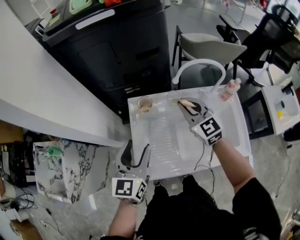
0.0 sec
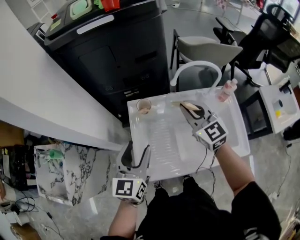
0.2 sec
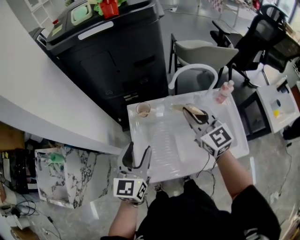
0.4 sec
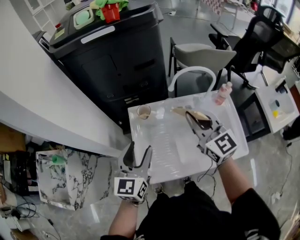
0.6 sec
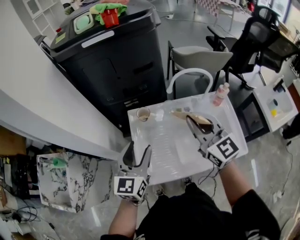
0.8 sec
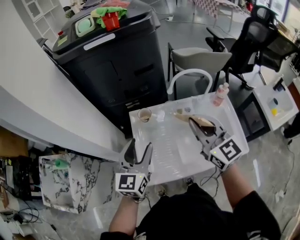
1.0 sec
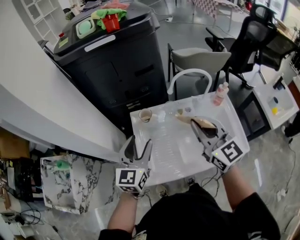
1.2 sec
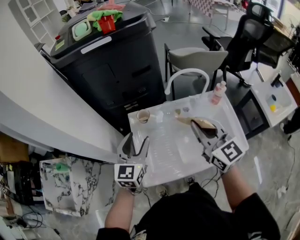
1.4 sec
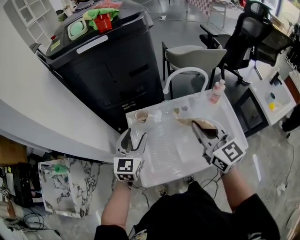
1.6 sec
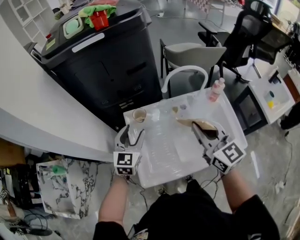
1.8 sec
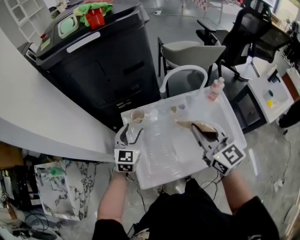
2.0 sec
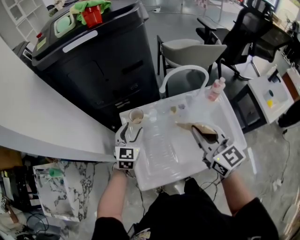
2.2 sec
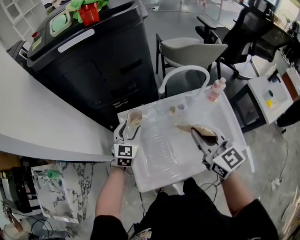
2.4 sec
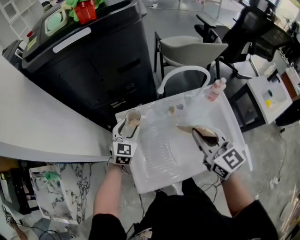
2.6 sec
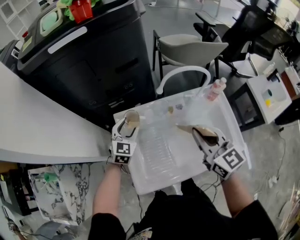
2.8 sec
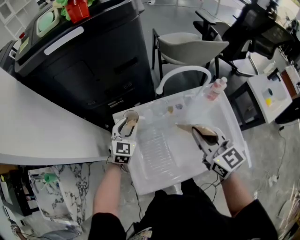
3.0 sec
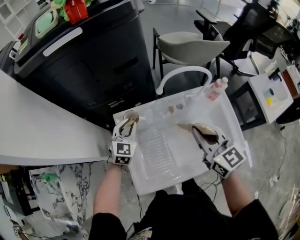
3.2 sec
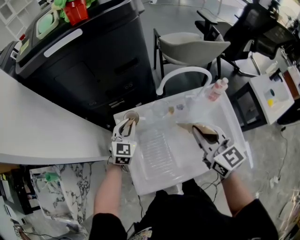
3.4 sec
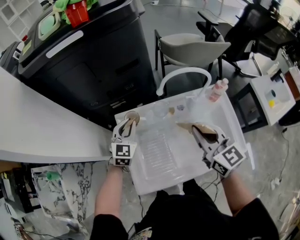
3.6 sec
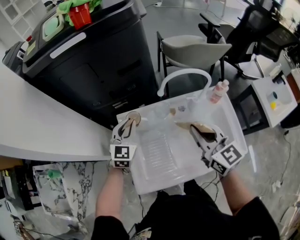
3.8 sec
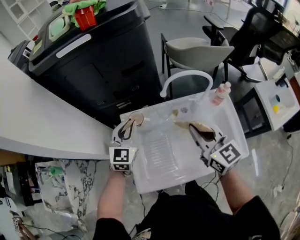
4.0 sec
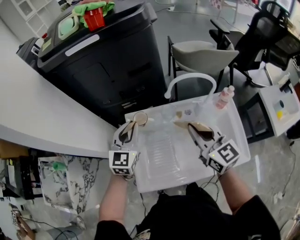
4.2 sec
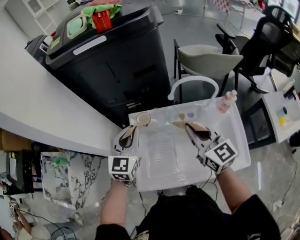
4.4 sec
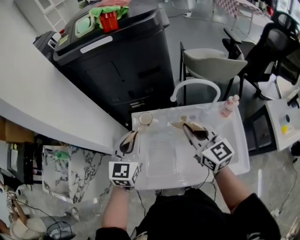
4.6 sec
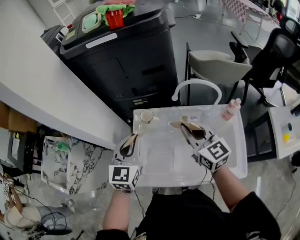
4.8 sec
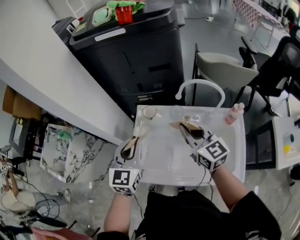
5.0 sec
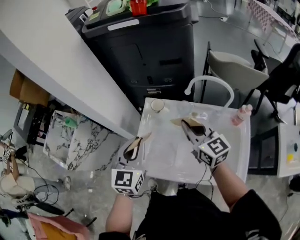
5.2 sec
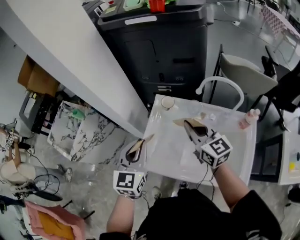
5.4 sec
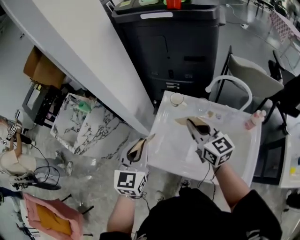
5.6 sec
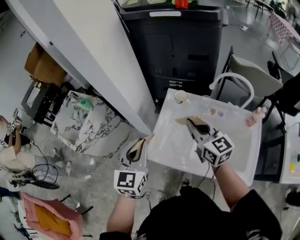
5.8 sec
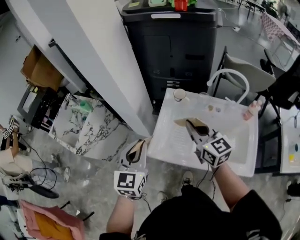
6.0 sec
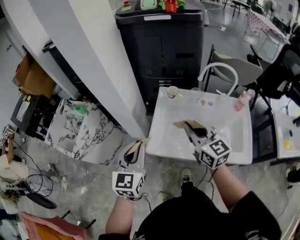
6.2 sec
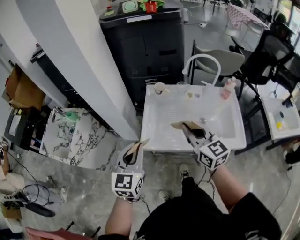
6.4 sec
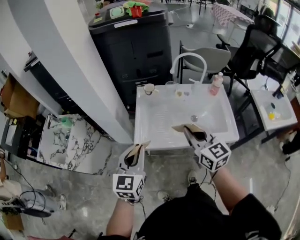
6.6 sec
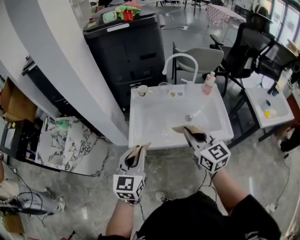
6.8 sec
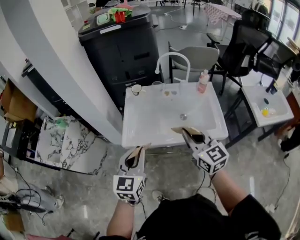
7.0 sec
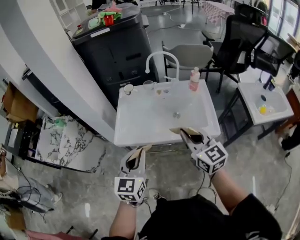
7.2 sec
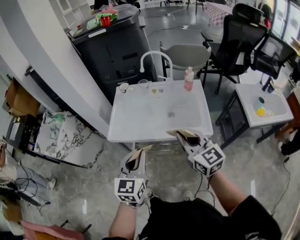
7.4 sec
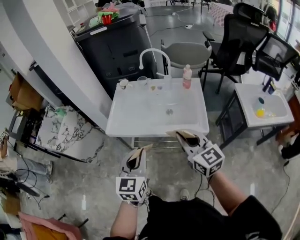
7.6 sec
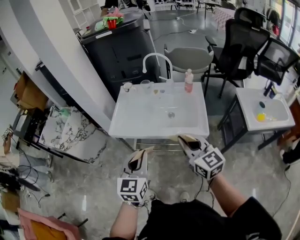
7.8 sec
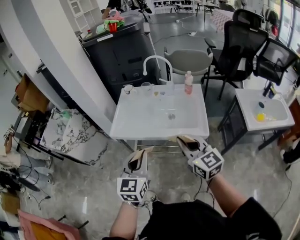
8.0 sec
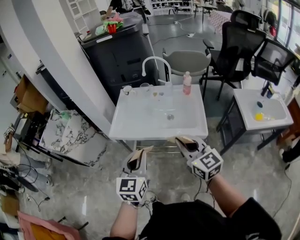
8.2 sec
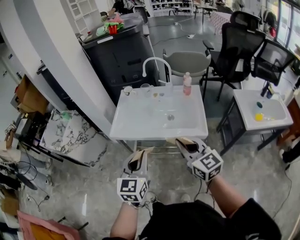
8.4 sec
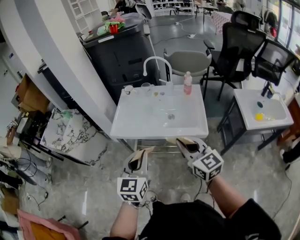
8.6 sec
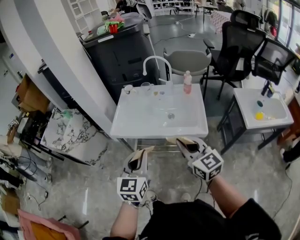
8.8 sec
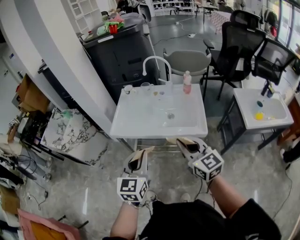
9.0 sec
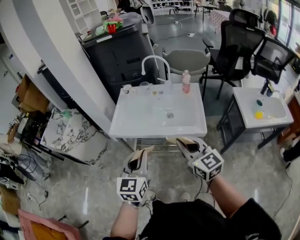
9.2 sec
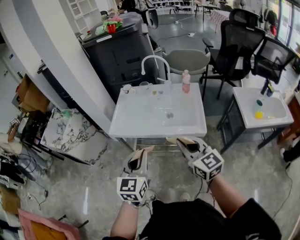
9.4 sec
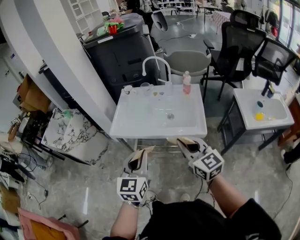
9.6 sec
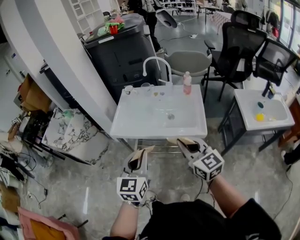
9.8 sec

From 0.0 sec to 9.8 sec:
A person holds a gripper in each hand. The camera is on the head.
From 0.0 sec to 1.4 sec: The right gripper goes roughly 20 cm backward and upward.
From 1.4 sec to 2.8 sec: The left gripper shifts roughly 20 cm downward and forward, and changes its angle by about 20 degrees; the right gripper goes some 5 cm downward.
From 2.8 sec to 4.2 sec: The left gripper moves upward, about 15 cm, and closes up.
From 4.2 sec to 5.6 sec: The right gripper changes place by some 10 cm, and swivels roughly 30 degrees, while the left gripper shifts by roughly 25 cm, and turns by roughly 30 degrees.
From 5.6 sec to 7.0 sec: Both grippers move backward, approximately 25 cm. The right gripper swivels some 20 degrees. The left gripper rotates some 20 degrees.
From 7.0 sec to 8.4 sec: The right gripper is displaced backward and to the right by about 20 cm. Meanwhile the left gripper heads to the right and backward, covering roughly 20 cm.
From 8.4 sec to 9.8 sec: The grippers make only small movements.

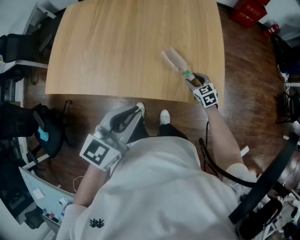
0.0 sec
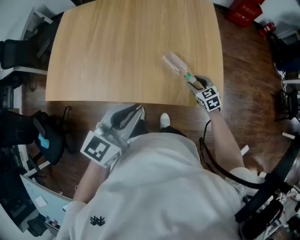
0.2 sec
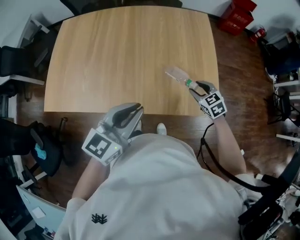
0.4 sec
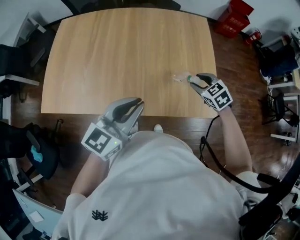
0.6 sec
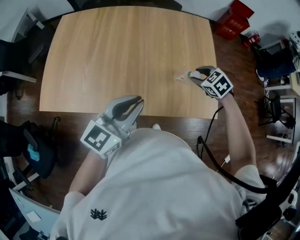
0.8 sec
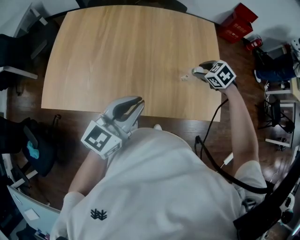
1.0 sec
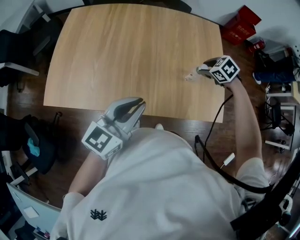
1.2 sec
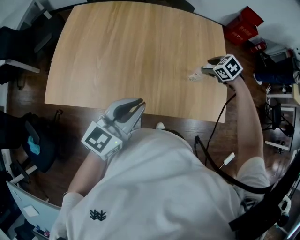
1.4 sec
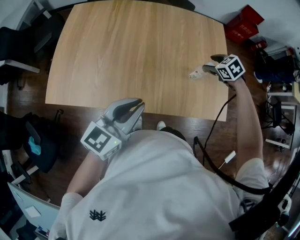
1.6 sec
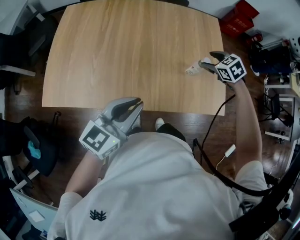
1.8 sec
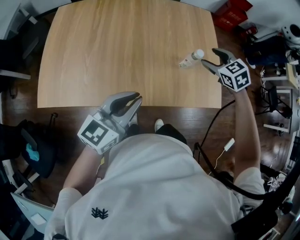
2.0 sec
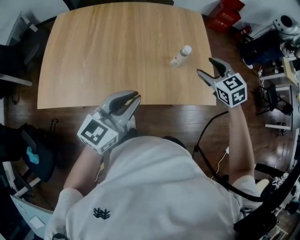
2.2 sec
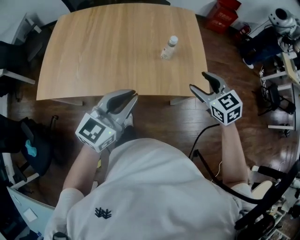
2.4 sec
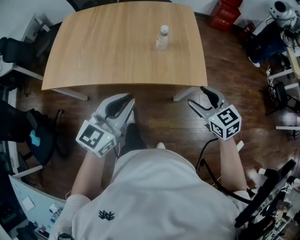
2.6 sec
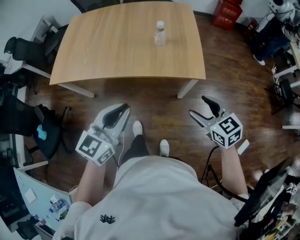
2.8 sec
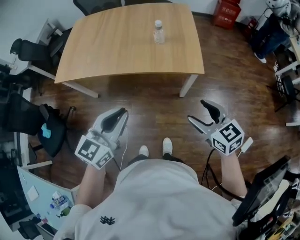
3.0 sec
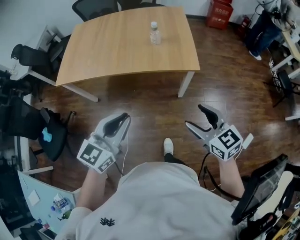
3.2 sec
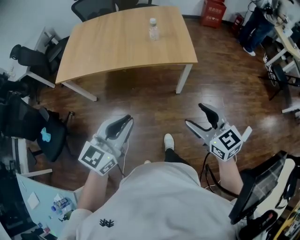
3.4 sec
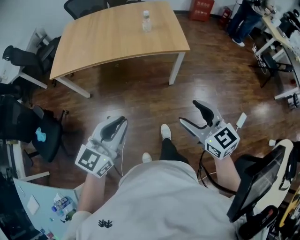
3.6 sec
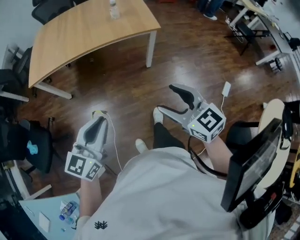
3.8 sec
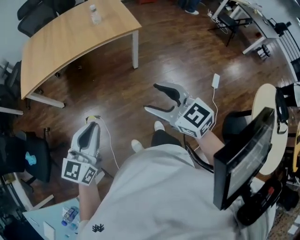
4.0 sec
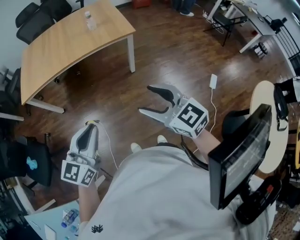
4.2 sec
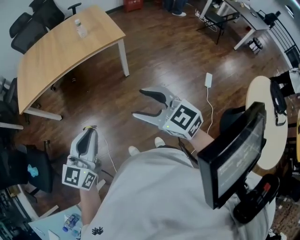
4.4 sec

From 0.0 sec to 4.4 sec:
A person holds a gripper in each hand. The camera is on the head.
From 0.0 sec to 1.4 sec: The right gripper heads upward and forward, covering some 20 cm, and swivels about 30 degrees. The left gripper moves to the left and forward, roughly 10 cm.
From 1.4 sec to 3.0 sec: The right gripper shifts approximately 40 cm backward, and points its fingers approximately 40 degrees further upward. Meanwhile the left gripper travels backward and to the right by some 25 cm.
From 3.0 sec to 4.4 sec: The two grippers go about 25 cm backward.

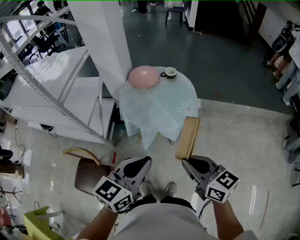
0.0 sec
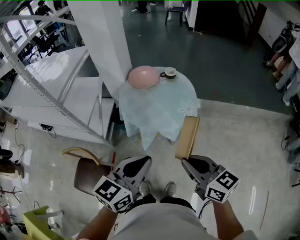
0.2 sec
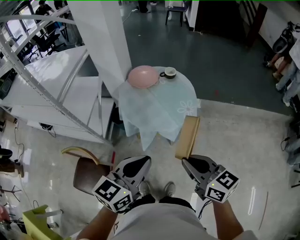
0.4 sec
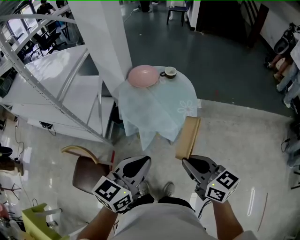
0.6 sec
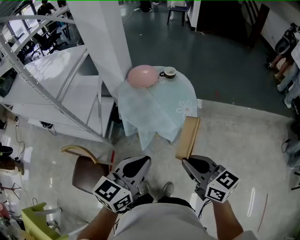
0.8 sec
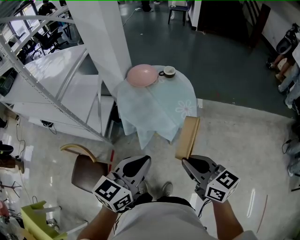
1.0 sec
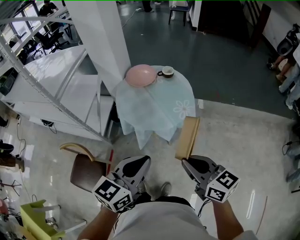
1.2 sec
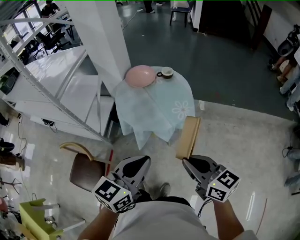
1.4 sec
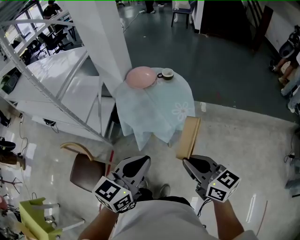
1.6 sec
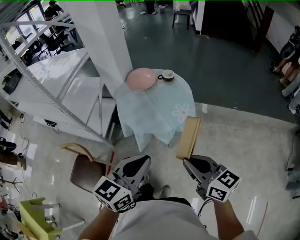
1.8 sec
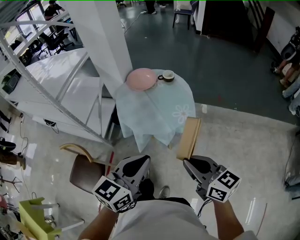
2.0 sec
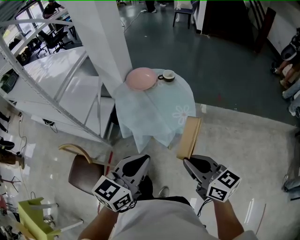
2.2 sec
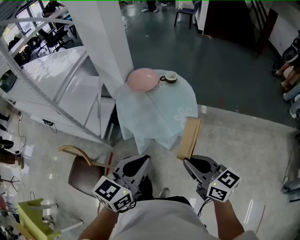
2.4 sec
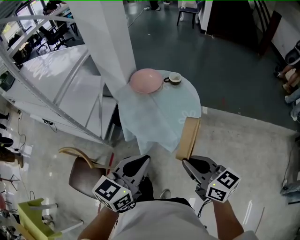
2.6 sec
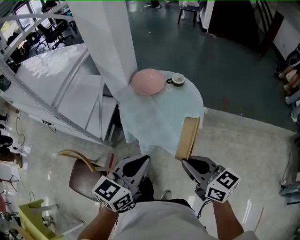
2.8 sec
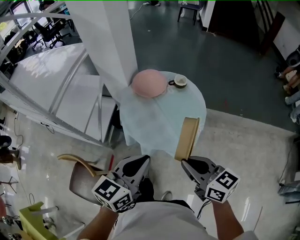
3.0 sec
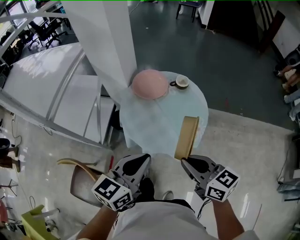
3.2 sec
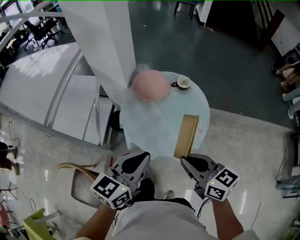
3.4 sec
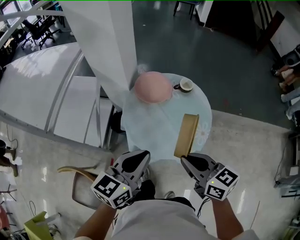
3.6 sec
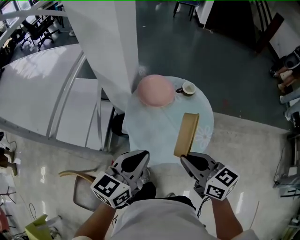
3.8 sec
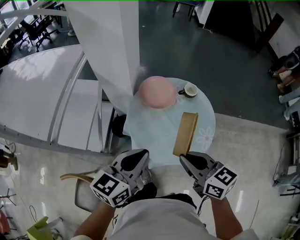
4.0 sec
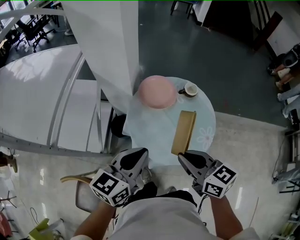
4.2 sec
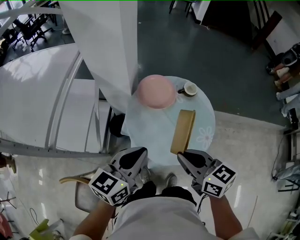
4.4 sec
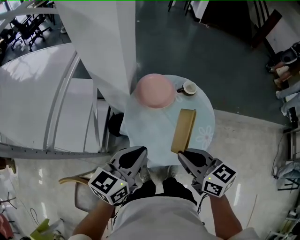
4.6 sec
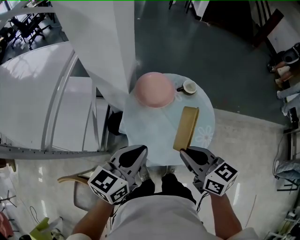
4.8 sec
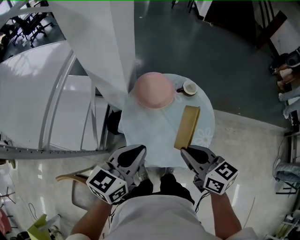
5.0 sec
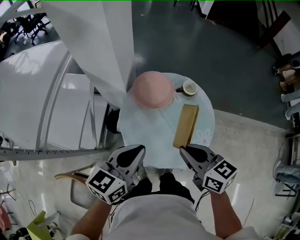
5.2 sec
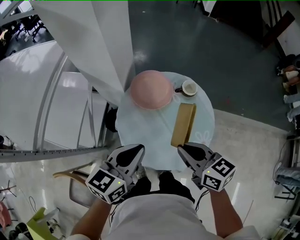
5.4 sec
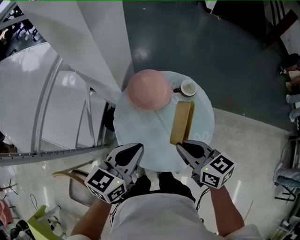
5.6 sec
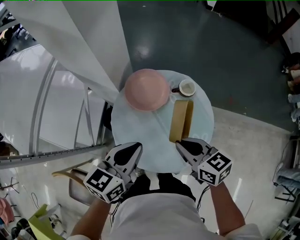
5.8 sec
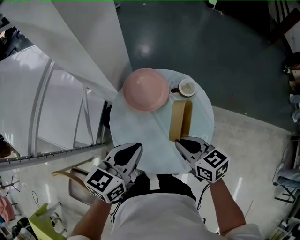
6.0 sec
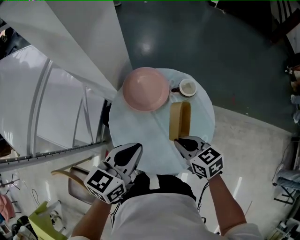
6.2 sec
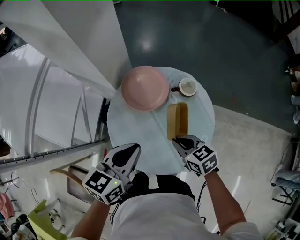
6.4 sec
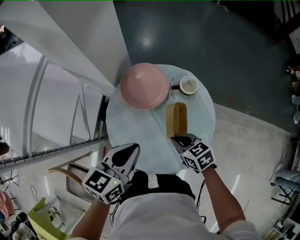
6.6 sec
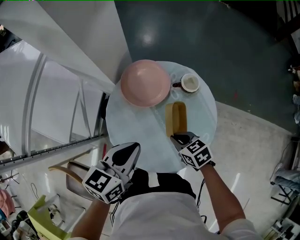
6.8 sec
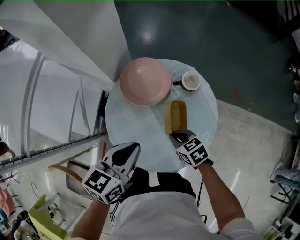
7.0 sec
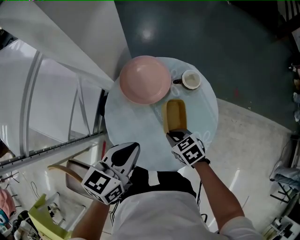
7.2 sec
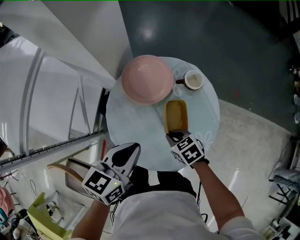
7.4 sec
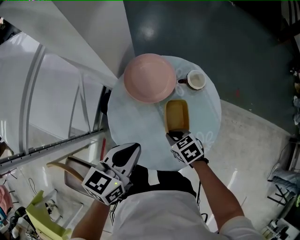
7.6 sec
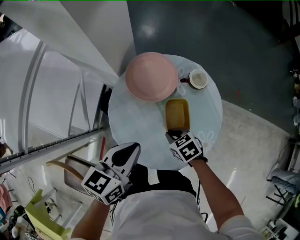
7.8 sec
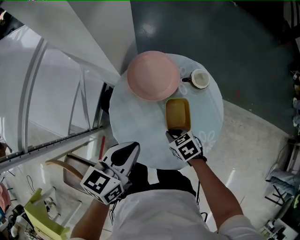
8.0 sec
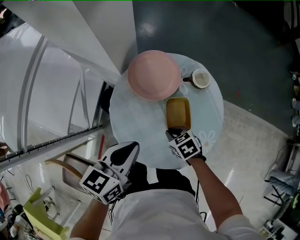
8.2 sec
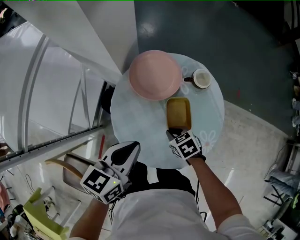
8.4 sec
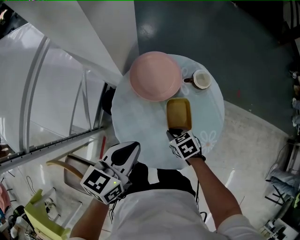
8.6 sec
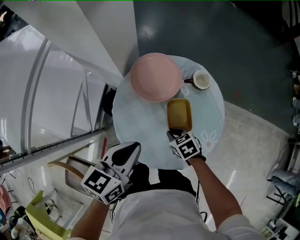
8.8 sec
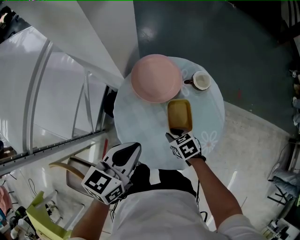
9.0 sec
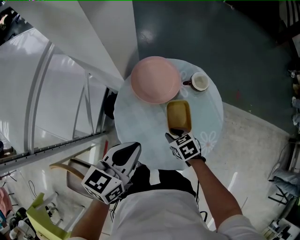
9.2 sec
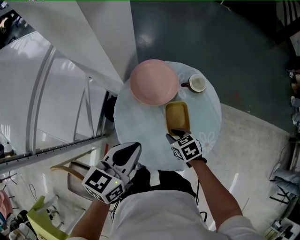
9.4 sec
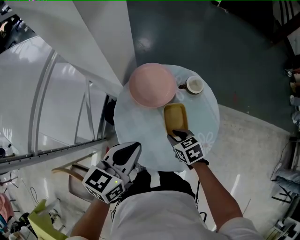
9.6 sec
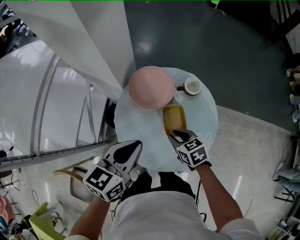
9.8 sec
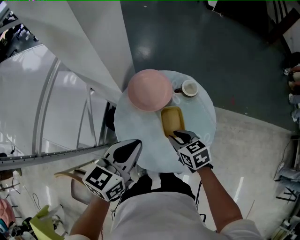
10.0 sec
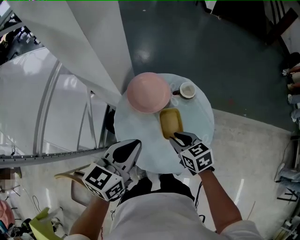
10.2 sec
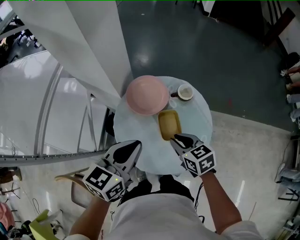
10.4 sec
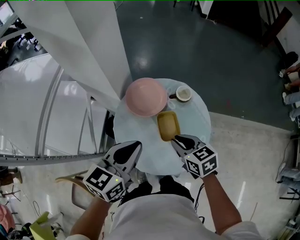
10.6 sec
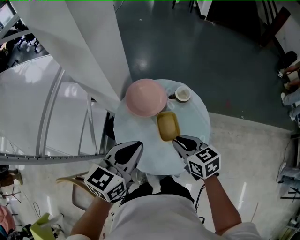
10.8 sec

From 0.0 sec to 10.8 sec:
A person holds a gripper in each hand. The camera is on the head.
From 0.0 sec to 1.6 sec: The two grippers go approximately 10 cm to the right.
From 1.6 sec to 3.0 sec: Both grippers move forward and to the left, about 20 cm.
From 3.0 sec to 4.6 sec: The two grippers go roughly 20 cm forward and to the left.
From 4.6 sec to 6.2 sec: The left gripper shifts roughly 15 cm to the right, forward and downward, while the right gripper goes about 20 cm downward, to the right and forward.
From 6.2 sec to 7.8 sec: The right gripper travels downward by some 15 cm, and changes its angle by roughly 20 degrees. The left gripper shifts by some 5 cm.
From 7.8 sec to 9.2 sec: The grippers make only small movements.
From 9.2 sec to 10.8 sec: The right gripper is displaced upward by some 20 cm, and rotates about 30 degrees; the left gripper heads upward, covering some 10 cm.
